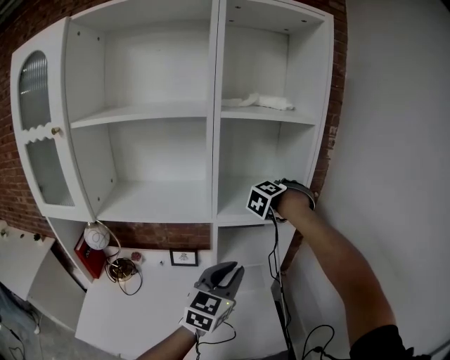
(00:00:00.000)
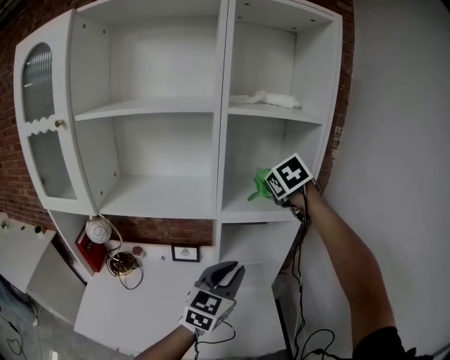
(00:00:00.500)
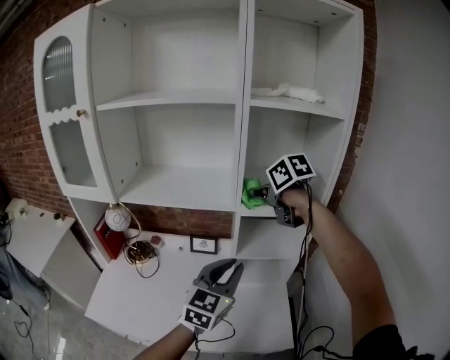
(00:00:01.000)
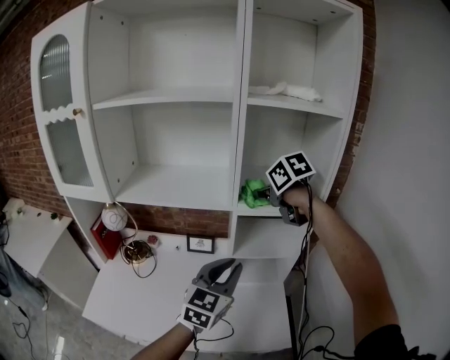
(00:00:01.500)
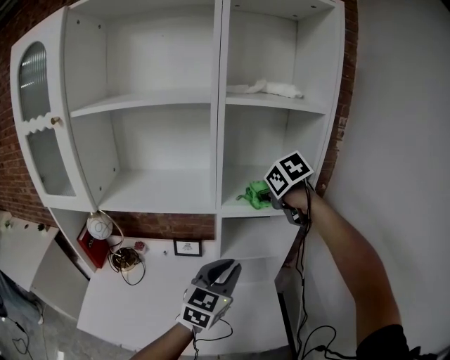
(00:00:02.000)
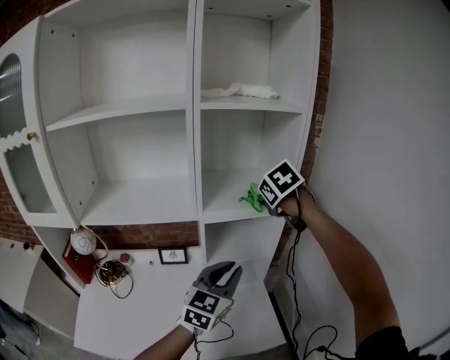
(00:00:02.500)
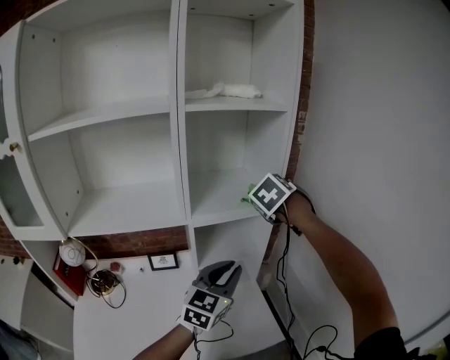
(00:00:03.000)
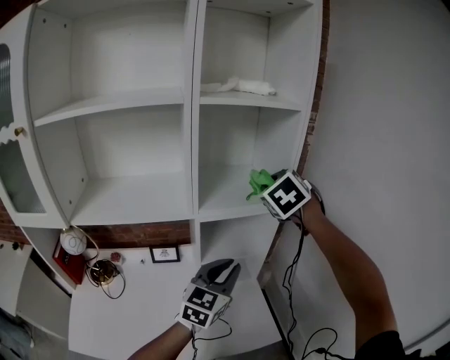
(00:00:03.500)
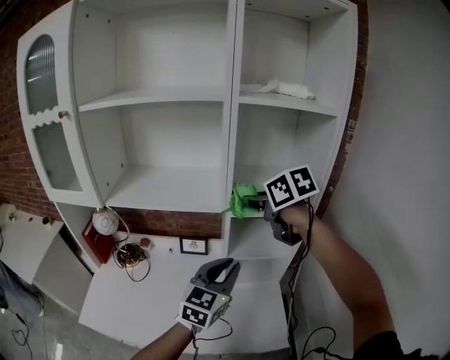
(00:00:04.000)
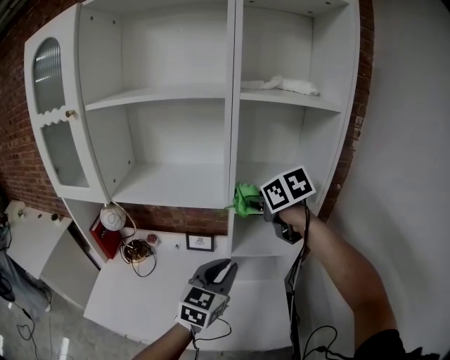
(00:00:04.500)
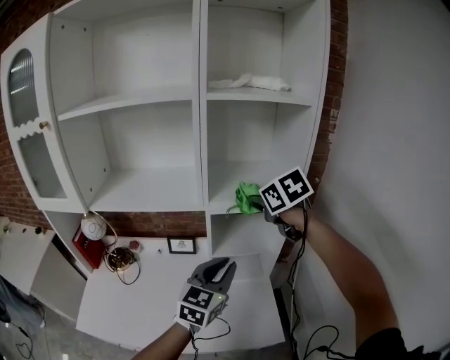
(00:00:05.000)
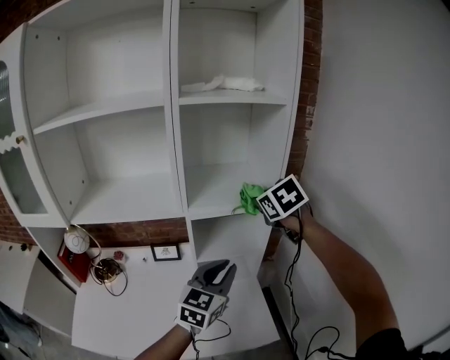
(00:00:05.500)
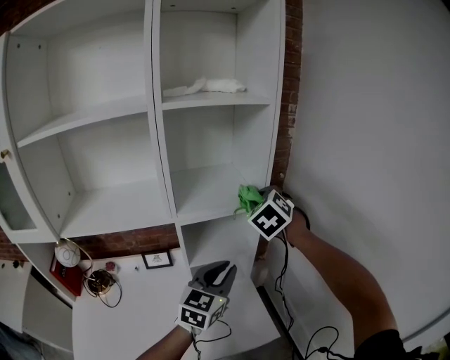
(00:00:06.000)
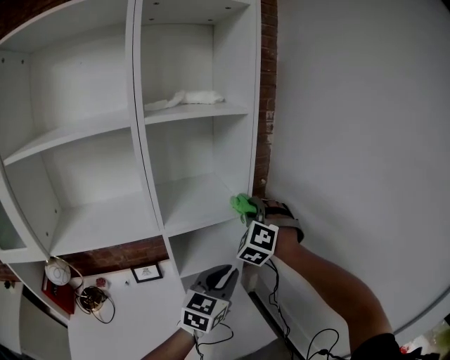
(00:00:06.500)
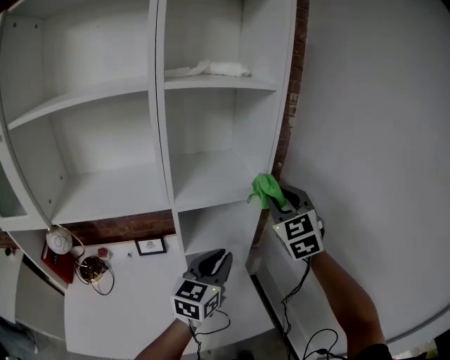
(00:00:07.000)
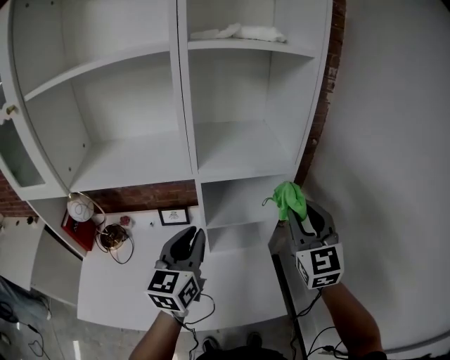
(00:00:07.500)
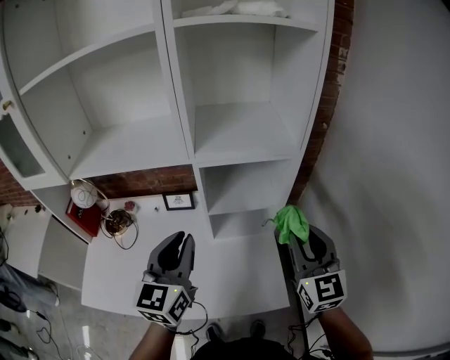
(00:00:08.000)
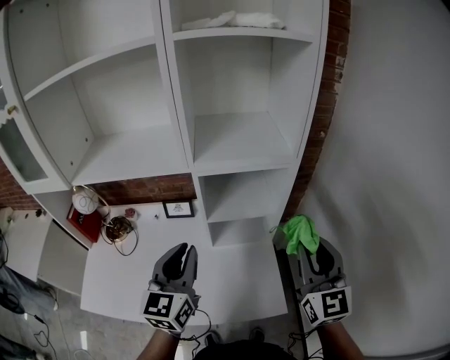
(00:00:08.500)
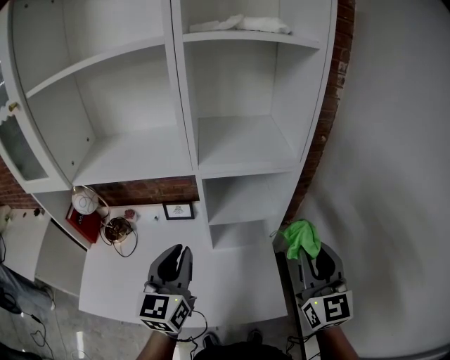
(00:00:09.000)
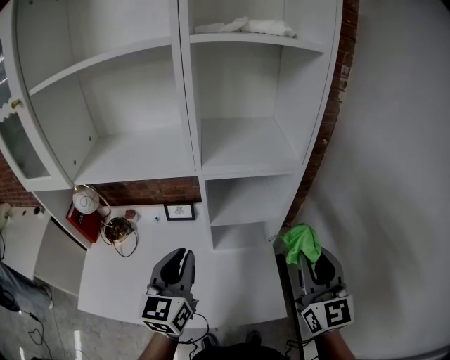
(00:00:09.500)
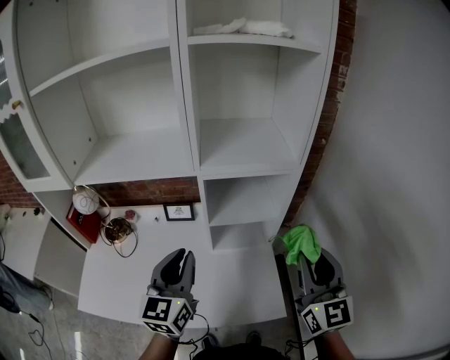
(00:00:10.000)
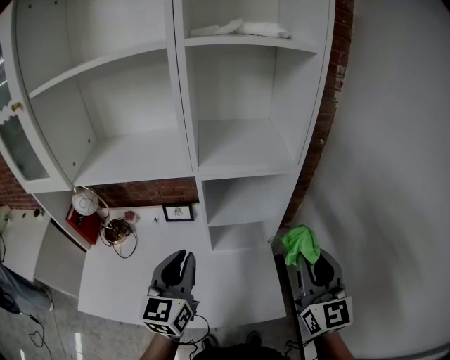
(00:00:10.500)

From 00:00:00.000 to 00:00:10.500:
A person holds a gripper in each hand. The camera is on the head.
From 00:00:00.000 to 00:00:02.000: The right gripper swivels about 60 degrees.
From 00:00:02.000 to 00:00:04.000: The right gripper moves some 10 cm, and rotates some 20 degrees.
From 00:00:04.000 to 00:00:06.500: The right gripper moves approximately 20 cm, and changes its angle by about 80 degrees. The left gripper changes place by some 15 cm, and turns by about 20 degrees.
From 00:00:06.500 to 00:00:08.500: The right gripper shifts by roughly 20 cm, and rotates around the line of its fingers by roughly 60 degrees, clockwise from behind. Meanwhile the left gripper changes place by about 15 cm, and changes its angle by about 40 degrees.
From 00:00:08.500 to 00:00:10.500: The grippers move only a little.

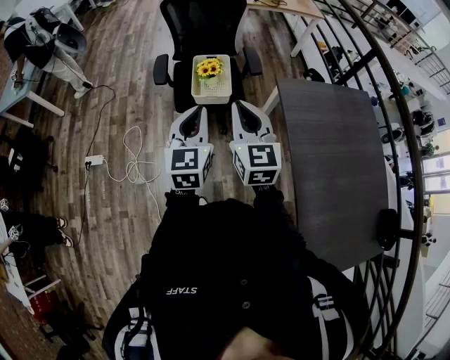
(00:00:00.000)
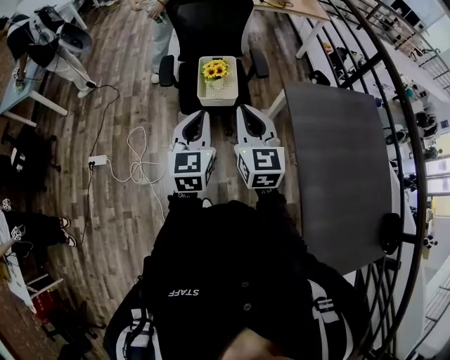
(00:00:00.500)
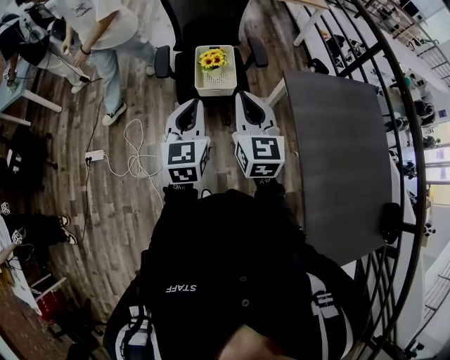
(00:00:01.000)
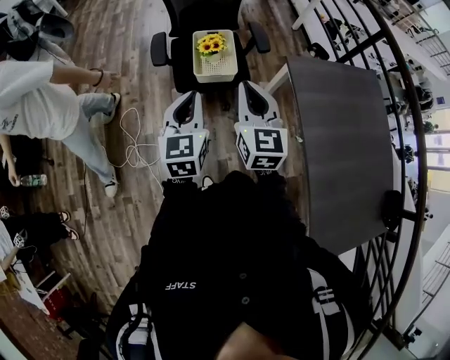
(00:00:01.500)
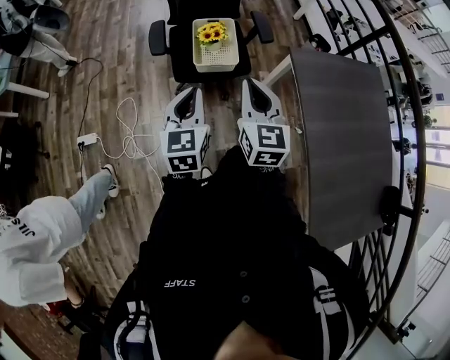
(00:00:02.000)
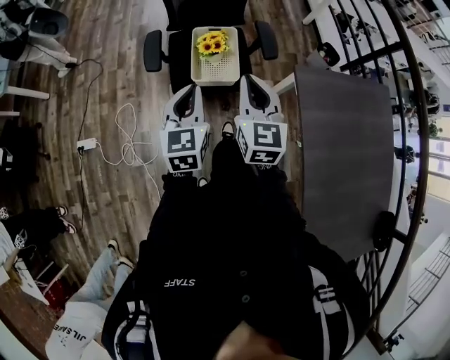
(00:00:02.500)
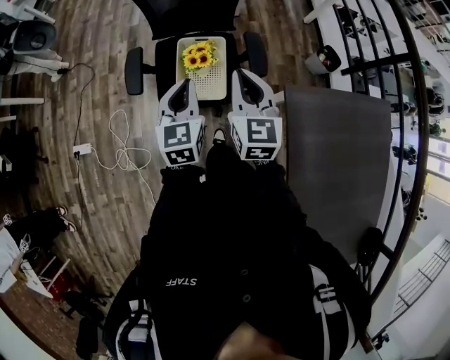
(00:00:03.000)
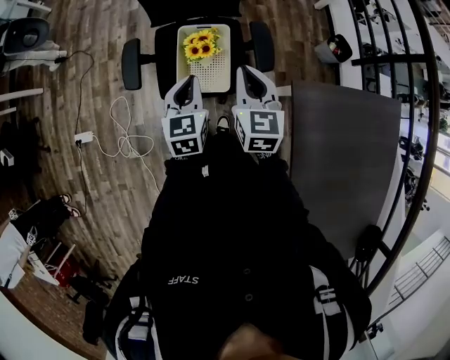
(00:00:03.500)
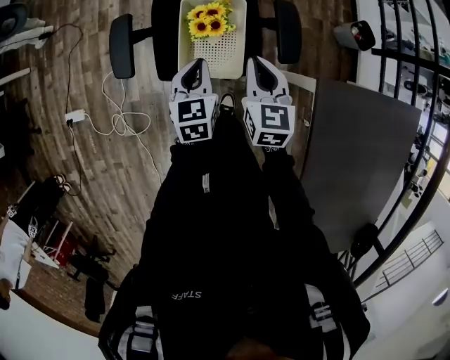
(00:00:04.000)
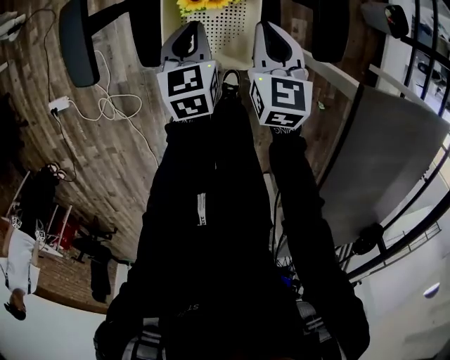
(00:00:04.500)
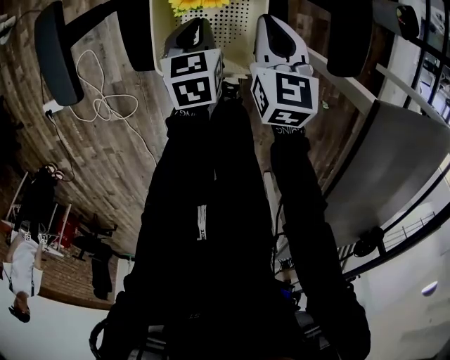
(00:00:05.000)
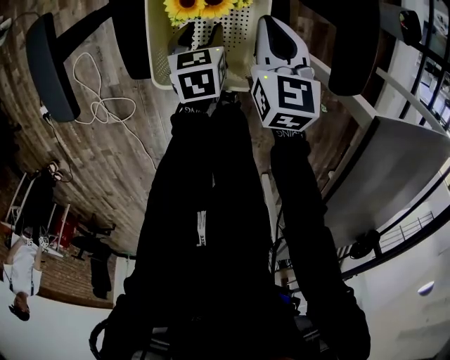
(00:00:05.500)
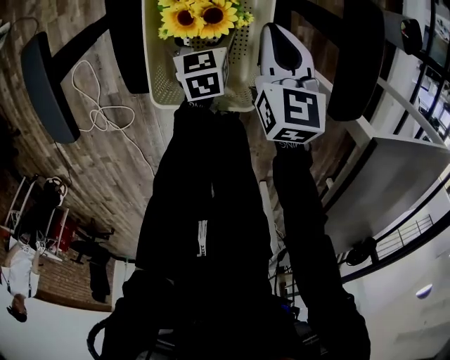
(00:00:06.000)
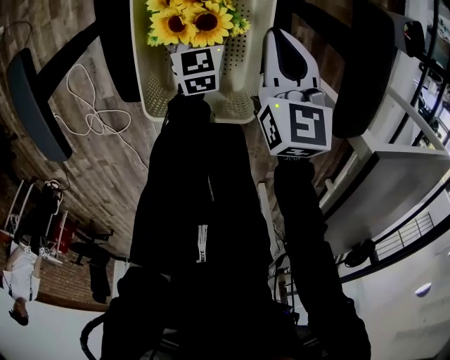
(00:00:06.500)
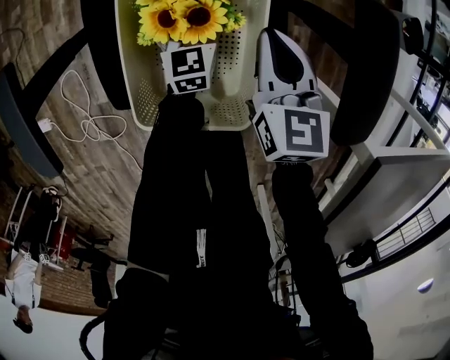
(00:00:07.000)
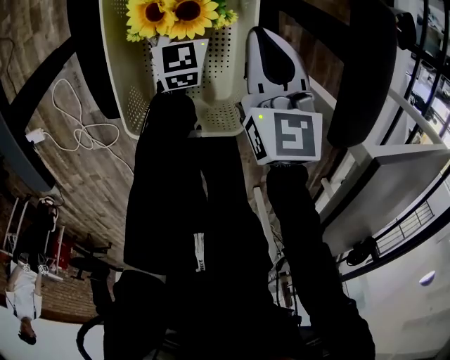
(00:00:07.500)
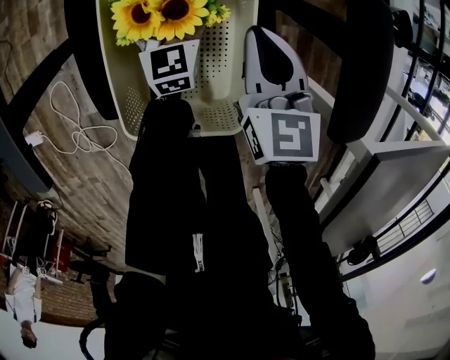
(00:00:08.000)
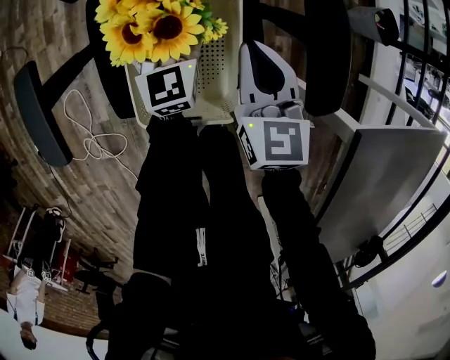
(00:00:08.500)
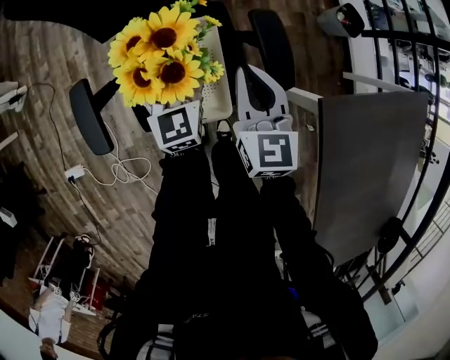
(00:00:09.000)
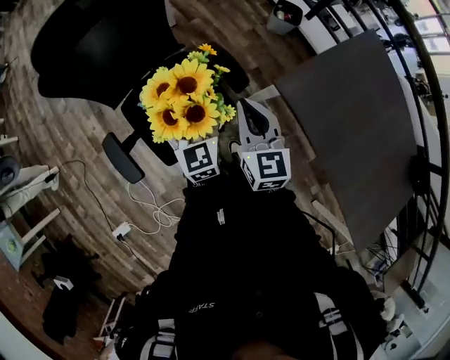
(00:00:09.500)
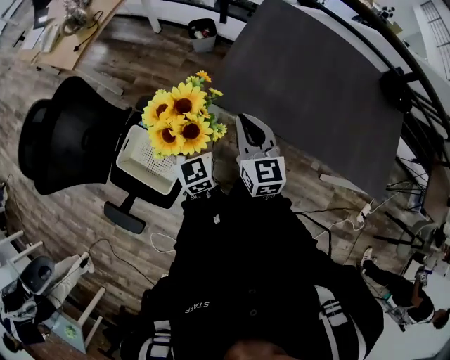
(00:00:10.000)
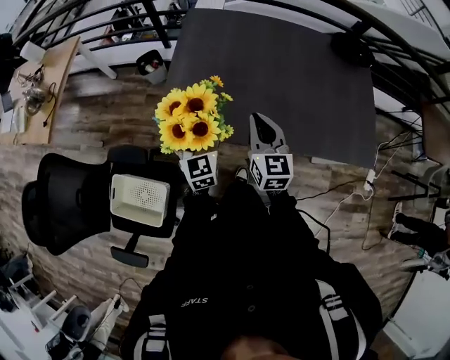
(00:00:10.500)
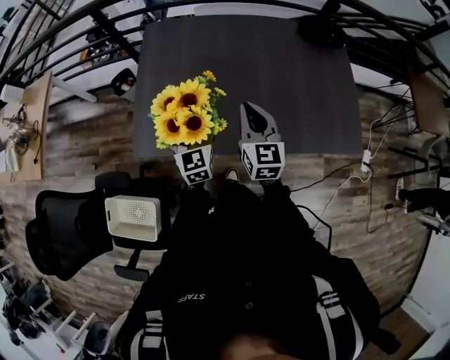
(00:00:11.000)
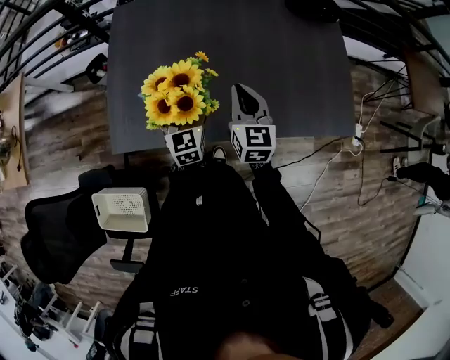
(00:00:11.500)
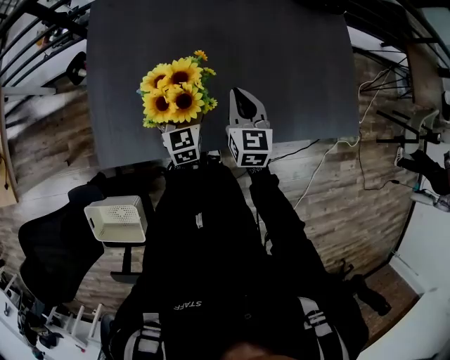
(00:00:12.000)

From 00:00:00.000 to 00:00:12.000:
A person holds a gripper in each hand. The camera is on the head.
From 00:00:00.000 to 00:00:02.000: The left gripper goes about 15 cm downward, to the left and forward, while the right gripper shifts roughly 10 cm downward and forward.
From 00:00:02.000 to 00:00:04.000: The two grippers go about 40 cm forward and downward. The left gripper turns by about 20 degrees.
From 00:00:04.000 to 00:00:06.000: The right gripper is displaced downward and forward by approximately 30 cm. Meanwhile the left gripper travels downward by roughly 35 cm, and opens.
From 00:00:06.000 to 00:00:08.000: The left gripper is displaced forward by approximately 10 cm, and changes its angle by about 30 degrees.
From 00:00:08.000 to 00:00:10.000: The grippers both shift upward by approximately 50 cm. The right gripper turns by about 60 degrees; the left gripper turns by approximately 50 degrees.
From 00:00:10.000 to 00:00:12.000: The two grippers travel together, about 50 cm. The right gripper rotates some 40 degrees, while the left gripper turns by approximately 40 degrees.

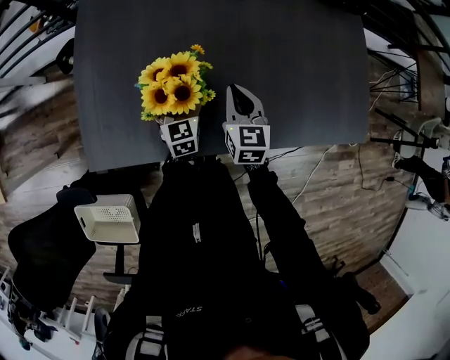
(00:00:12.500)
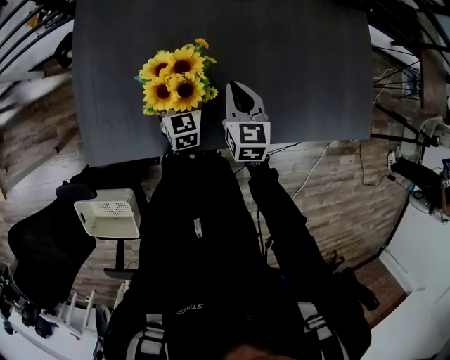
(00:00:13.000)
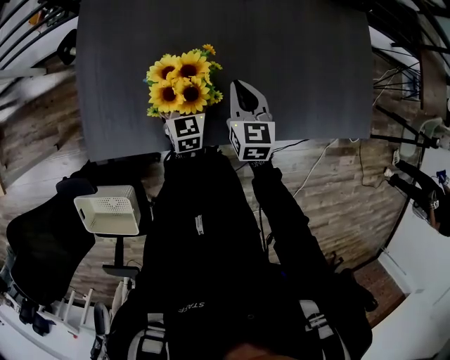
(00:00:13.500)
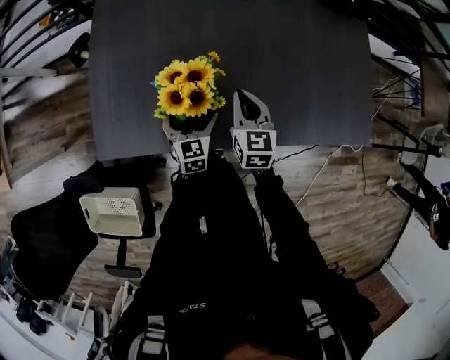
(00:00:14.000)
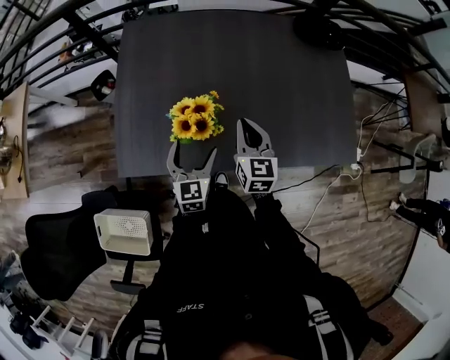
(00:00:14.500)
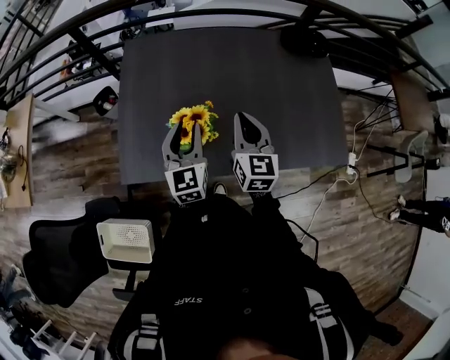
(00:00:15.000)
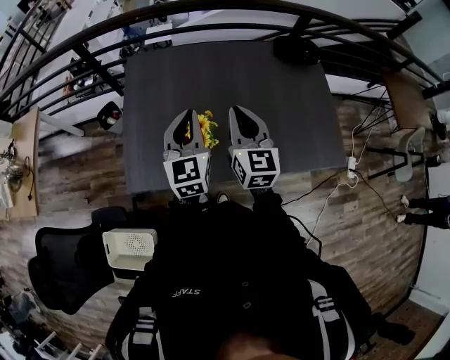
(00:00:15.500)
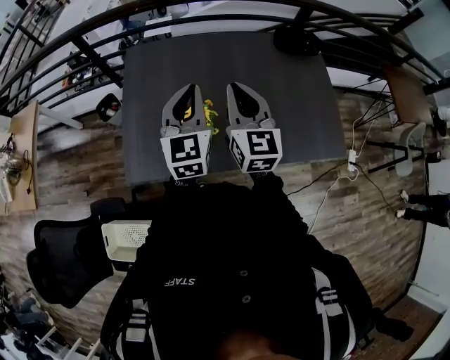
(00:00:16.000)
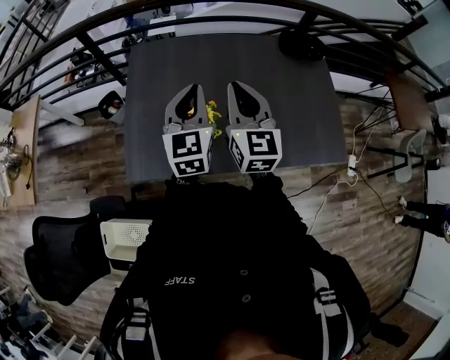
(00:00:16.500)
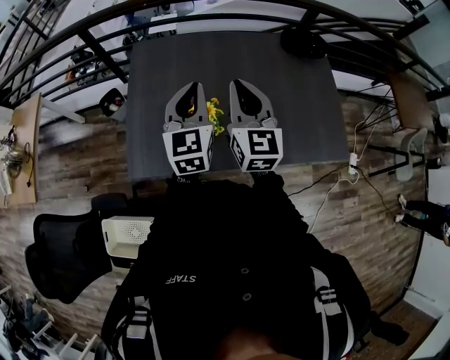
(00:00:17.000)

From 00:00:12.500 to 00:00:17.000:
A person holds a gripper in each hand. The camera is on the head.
From 00:00:12.500 to 00:00:14.500: The left gripper moves upward and backward, approximately 20 cm. Meanwhile the right gripper moves upward, roughly 15 cm.
From 00:00:14.500 to 00:00:17.000: The grippers both shift upward by roughly 25 cm. The left gripper closes.
